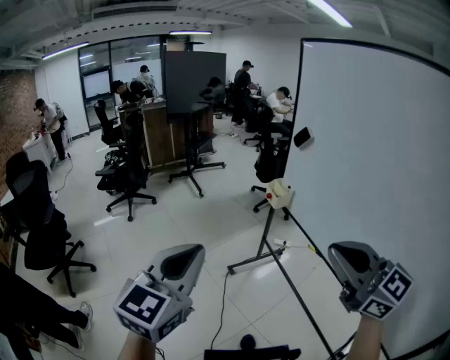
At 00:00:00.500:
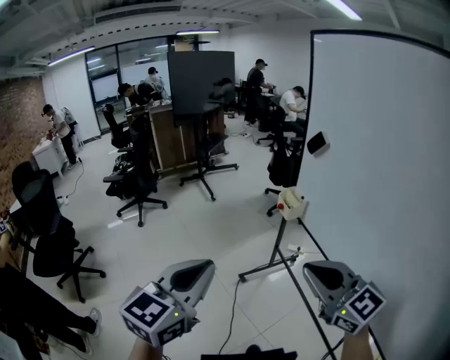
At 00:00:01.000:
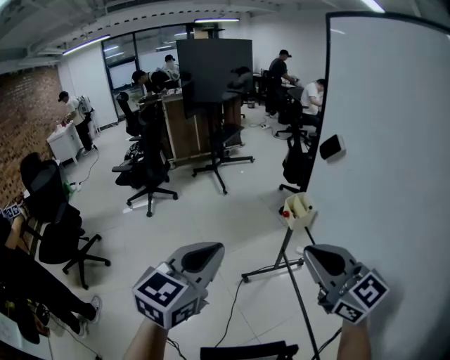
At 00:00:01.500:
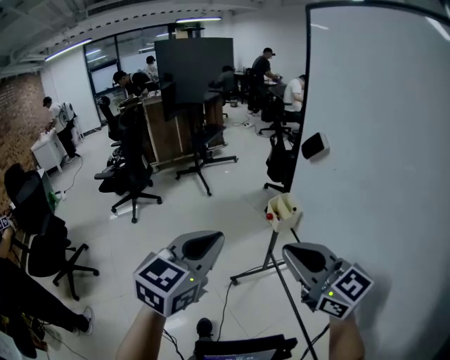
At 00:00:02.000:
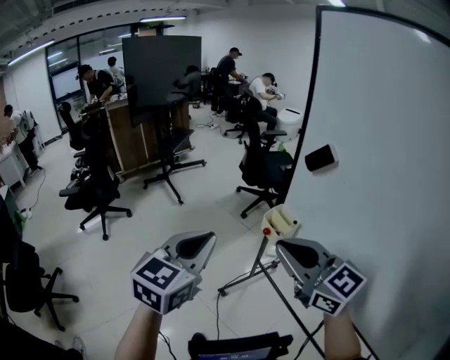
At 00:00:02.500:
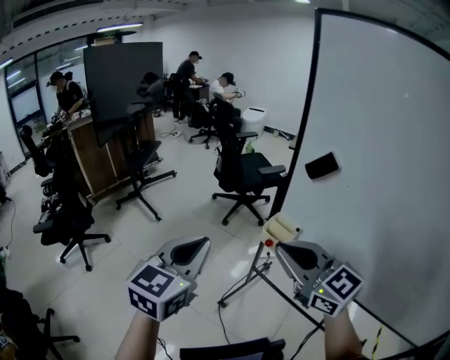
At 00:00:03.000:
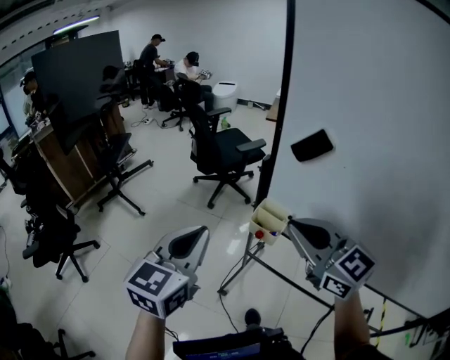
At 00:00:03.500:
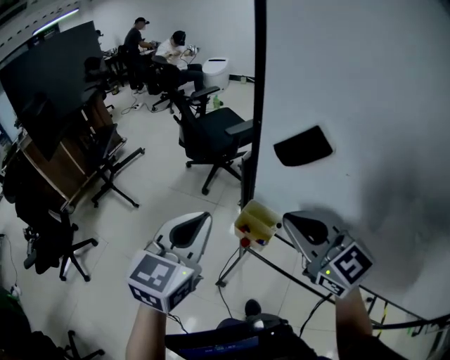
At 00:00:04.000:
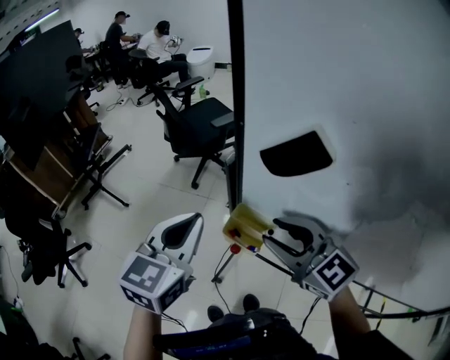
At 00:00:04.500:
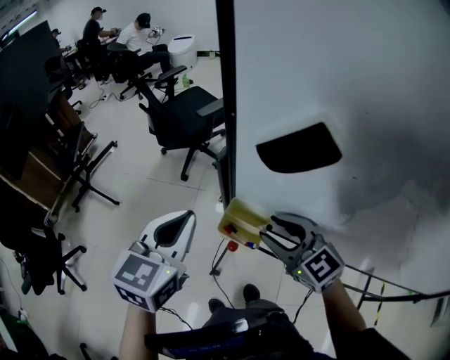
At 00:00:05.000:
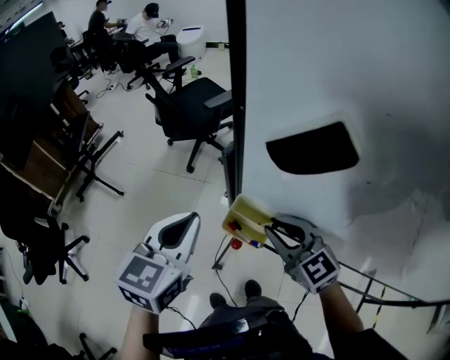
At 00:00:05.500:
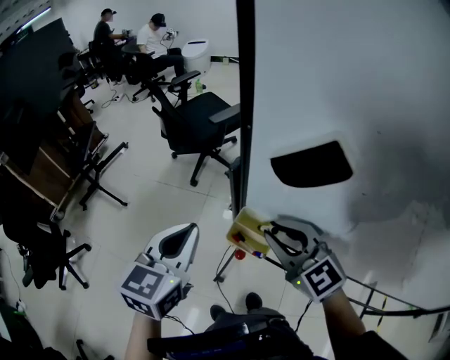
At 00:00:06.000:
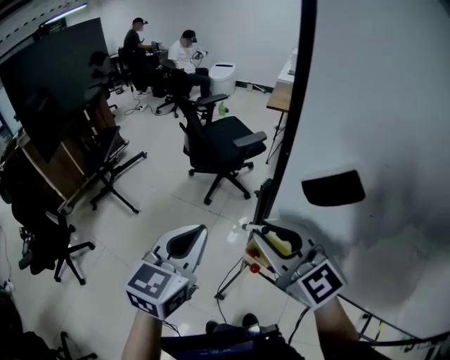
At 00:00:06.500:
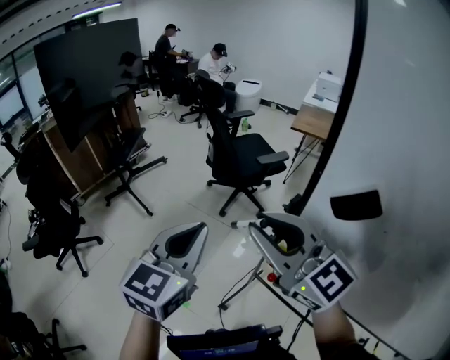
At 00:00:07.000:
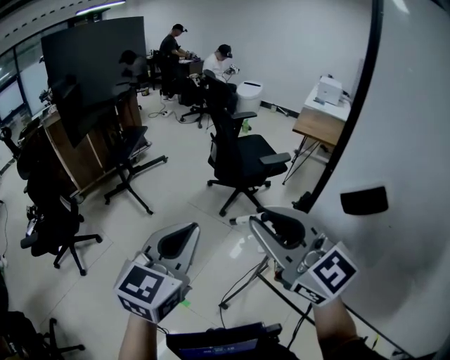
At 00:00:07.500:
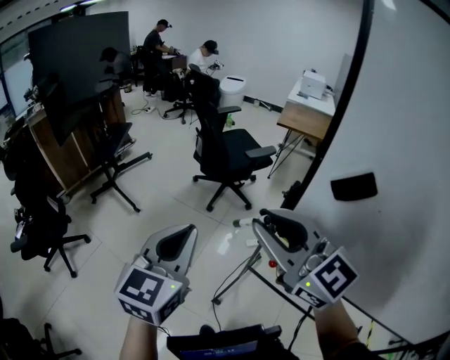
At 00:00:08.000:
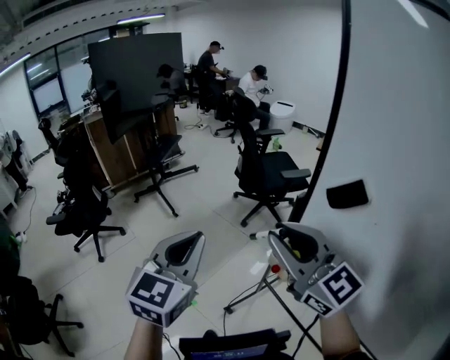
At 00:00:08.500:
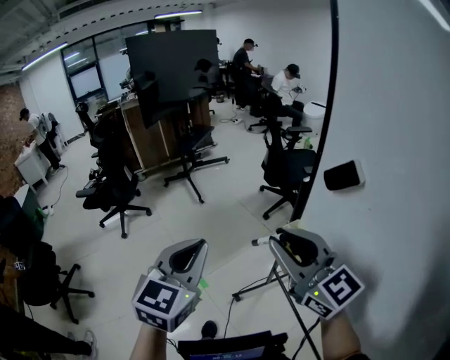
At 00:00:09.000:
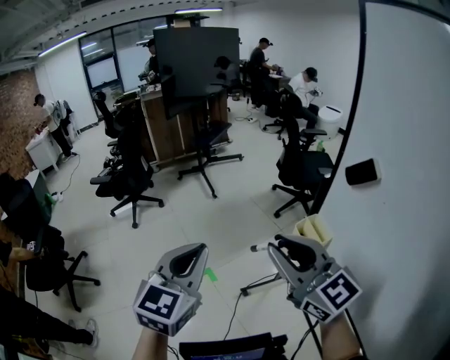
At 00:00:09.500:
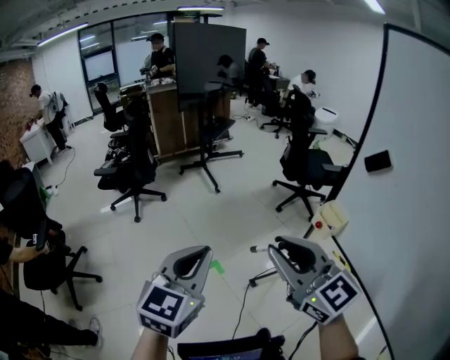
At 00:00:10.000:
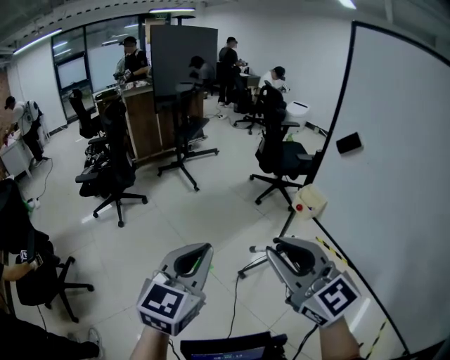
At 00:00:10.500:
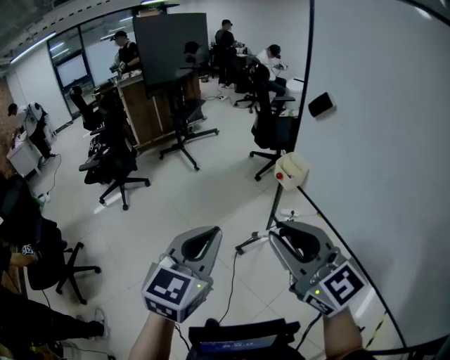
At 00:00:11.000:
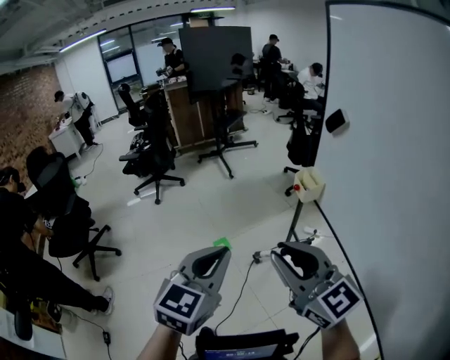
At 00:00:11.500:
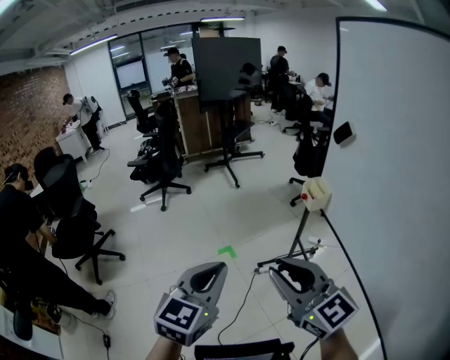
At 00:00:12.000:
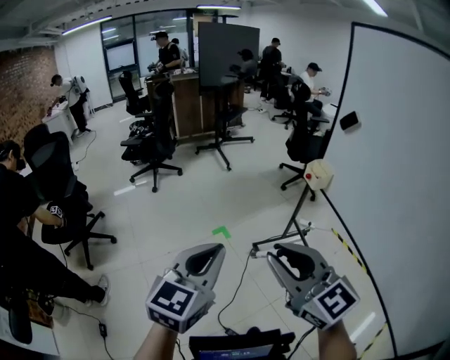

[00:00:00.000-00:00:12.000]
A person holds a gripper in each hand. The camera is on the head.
00:00:00.000 to 00:00:02.000: Both grippers move forward, approximately 35 cm.
00:00:02.000 to 00:00:04.000: The left gripper moves forward, some 25 cm, and swivels about 20 degrees; the right gripper travels forward and downward by some 25 cm, changes its angle by approximately 30 degrees, and opens.
00:00:04.000 to 00:00:06.000: The left gripper goes roughly 5 cm to the left, while the right gripper moves to the left and upward, roughly 10 cm, and closes its fingers.
00:00:06.000 to 00:00:08.000: The right gripper shifts approximately 15 cm backward, upward and to the left. Meanwhile the left gripper goes some 15 cm backward, to the left and upward, and turns by about 20 degrees.
00:00:08.000 to 00:00:10.000: Both grippers travel together backward and to the left, some 35 cm.
00:00:10.000 to 00:00:12.000: Both grippers move backward, some 25 cm.

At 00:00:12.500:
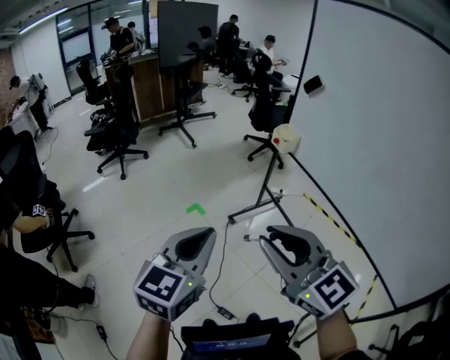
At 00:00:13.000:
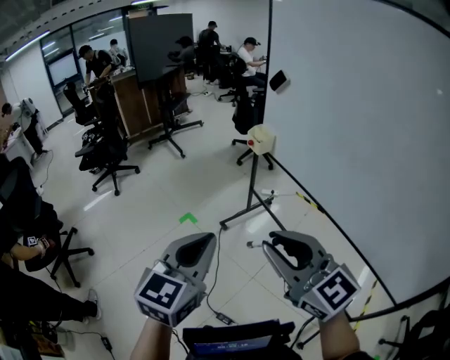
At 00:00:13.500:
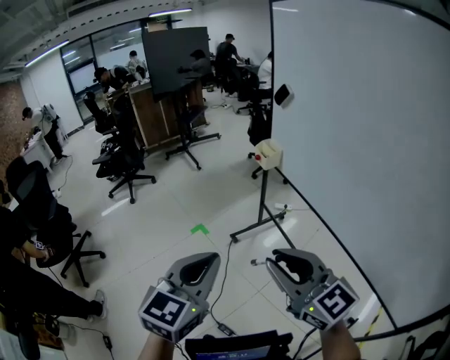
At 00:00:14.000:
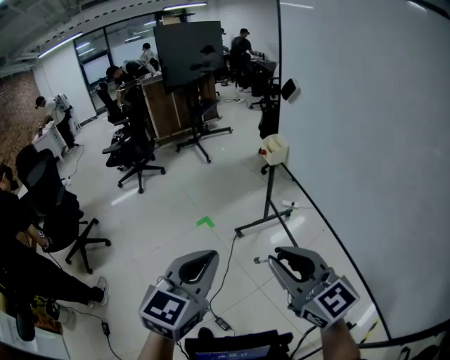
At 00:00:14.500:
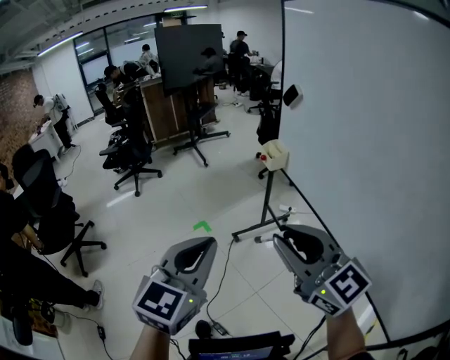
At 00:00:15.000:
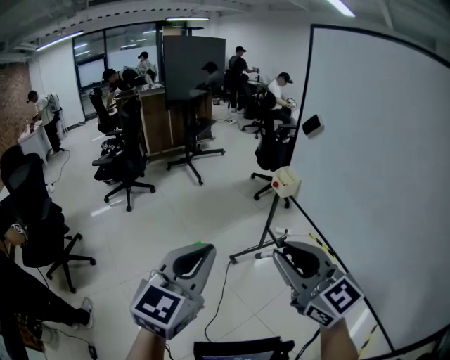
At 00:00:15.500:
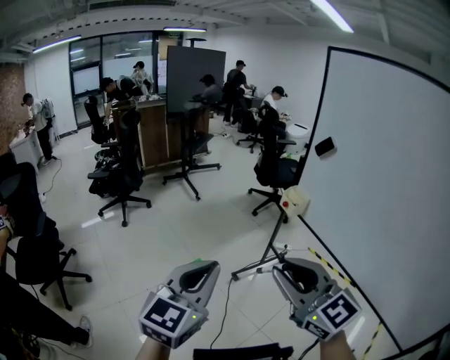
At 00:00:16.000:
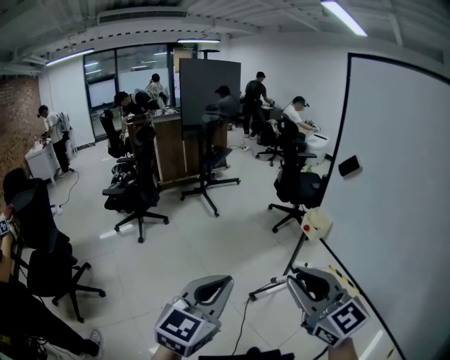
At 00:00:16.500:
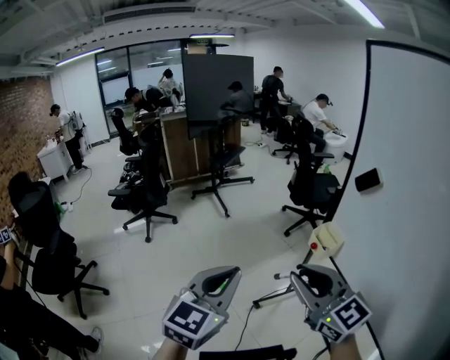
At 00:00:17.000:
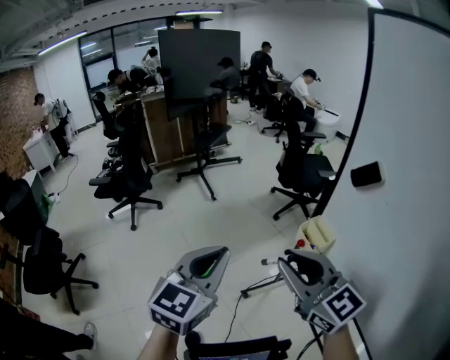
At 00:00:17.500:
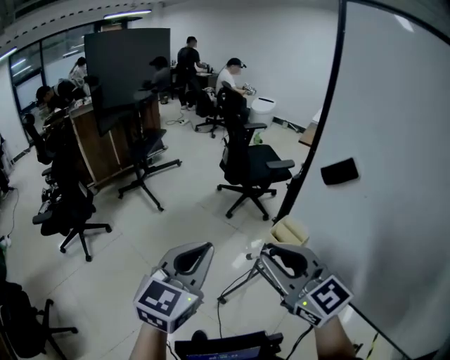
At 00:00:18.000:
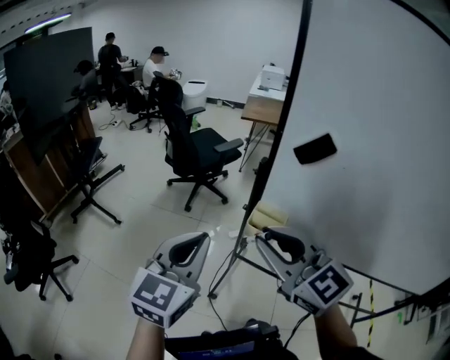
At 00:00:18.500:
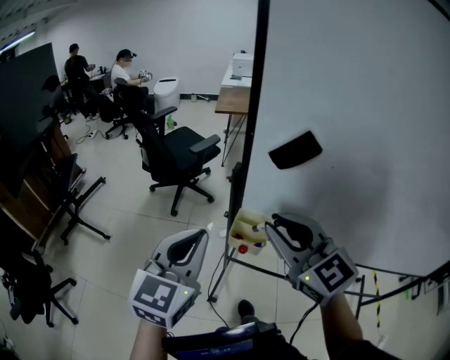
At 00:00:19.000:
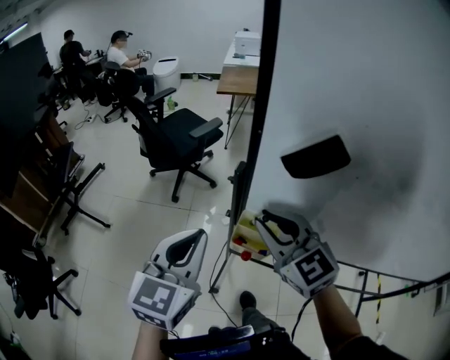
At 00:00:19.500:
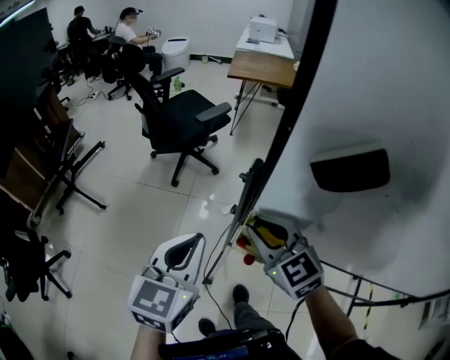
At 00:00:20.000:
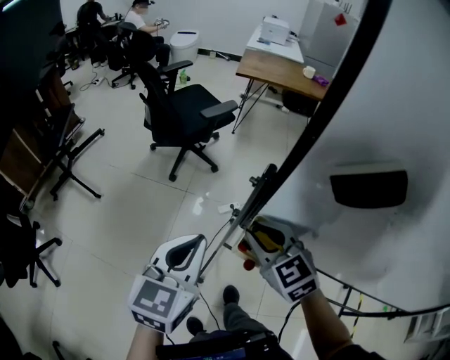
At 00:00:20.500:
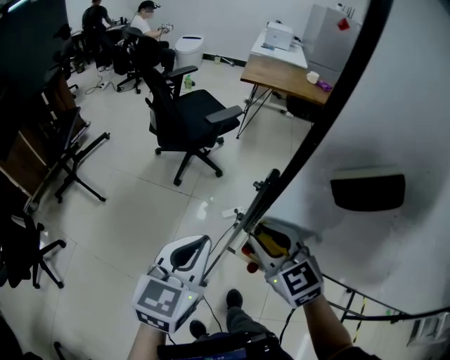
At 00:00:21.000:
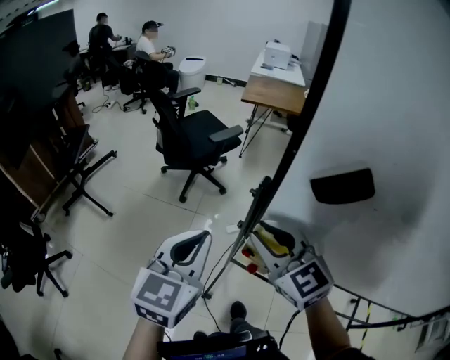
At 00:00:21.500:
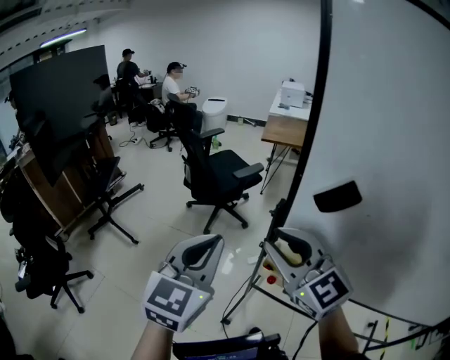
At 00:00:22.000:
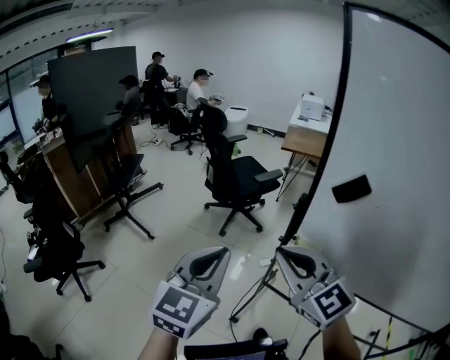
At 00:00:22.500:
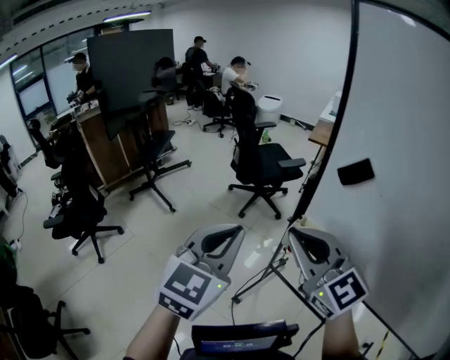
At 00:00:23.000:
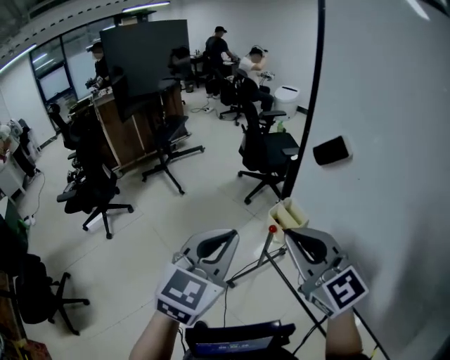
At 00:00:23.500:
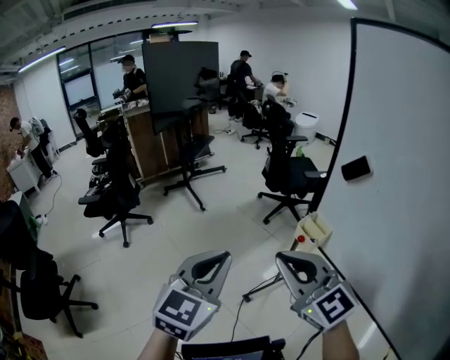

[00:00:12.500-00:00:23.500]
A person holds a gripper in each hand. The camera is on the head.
00:00:12.500 to 00:00:14.500: Both grippers travel together to the right, about 20 cm.
00:00:14.500 to 00:00:16.000: Both grippers travel together forward and to the left, approximately 25 cm.
00:00:16.000 to 00:00:18.000: The right gripper shifts by approximately 35 cm, and swivels about 30 degrees, while the left gripper ends up about 40 cm from where it was, and changes its angle by approximately 30 degrees.
00:00:18.000 to 00:00:20.000: The two grippers go about 25 cm forward and downward. The right gripper rotates approximately 30 degrees.
00:00:20.000 to 00:00:21.500: The left gripper heads upward, covering some 15 cm. Meanwhile the right gripper heads upward and backward, covering some 25 cm, and swivels approximately 30 degrees.
00:00:21.500 to 00:00:23.500: The right gripper shifts by some 30 cm, rotates approximately 30 degrees, and closes its fingers. Meanwhile the left gripper shifts by roughly 30 cm, and turns by about 30 degrees.

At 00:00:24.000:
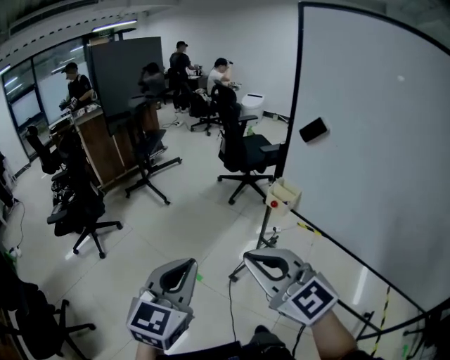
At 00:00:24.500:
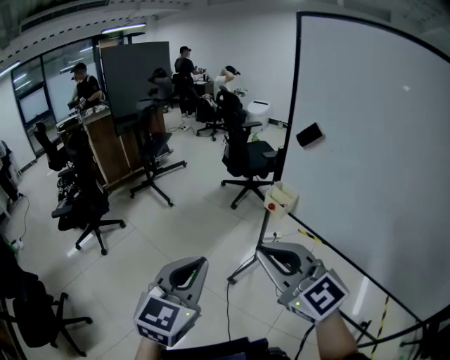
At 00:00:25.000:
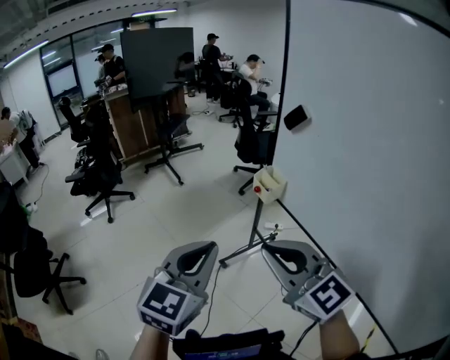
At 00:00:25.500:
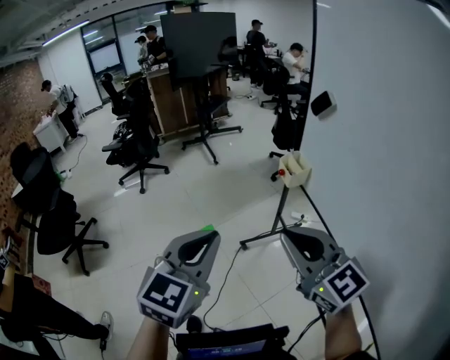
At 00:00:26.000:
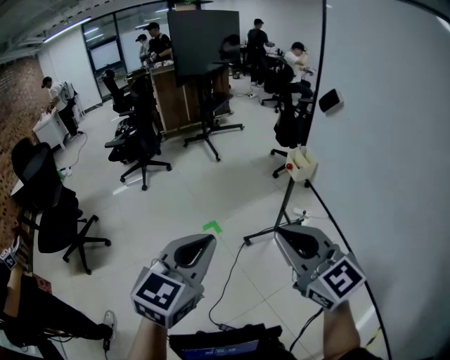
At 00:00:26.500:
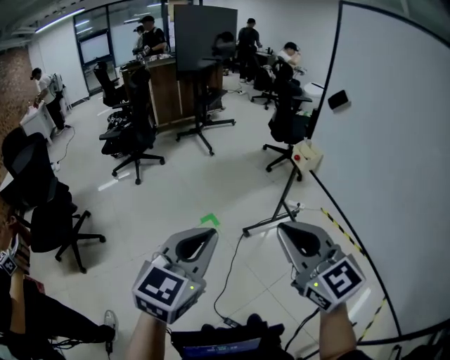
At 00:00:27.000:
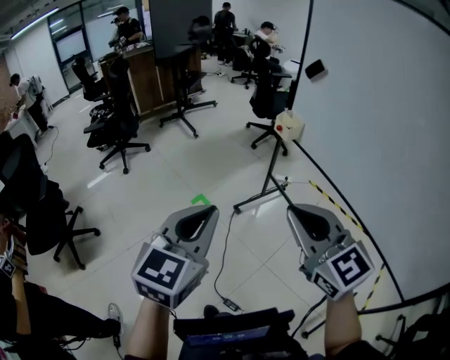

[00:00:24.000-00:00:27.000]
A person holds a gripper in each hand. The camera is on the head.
00:00:24.000 to 00:00:25.500: The two grippers go approximately 25 cm to the right and backward.
00:00:25.500 to 00:00:27.000: The left gripper heads to the left and backward, covering approximately 20 cm; the right gripper is displaced backward and to the left by approximately 20 cm.
